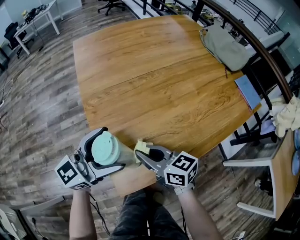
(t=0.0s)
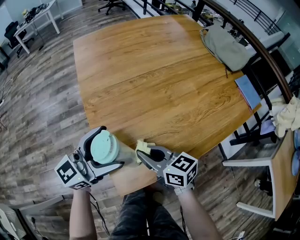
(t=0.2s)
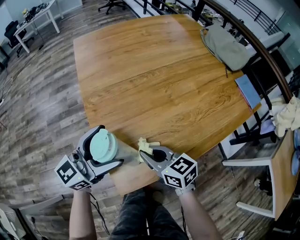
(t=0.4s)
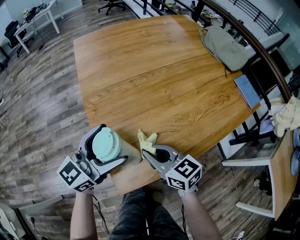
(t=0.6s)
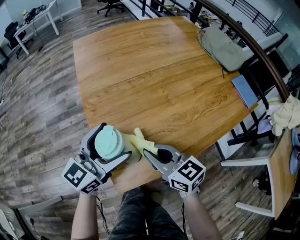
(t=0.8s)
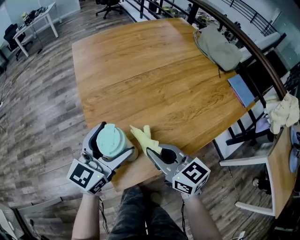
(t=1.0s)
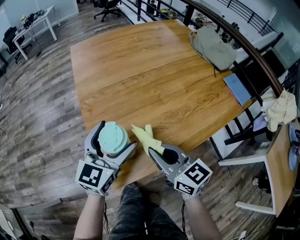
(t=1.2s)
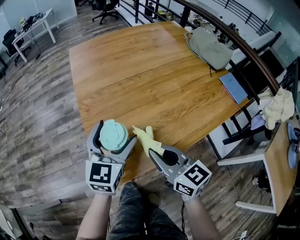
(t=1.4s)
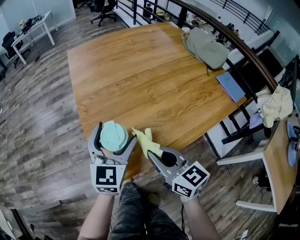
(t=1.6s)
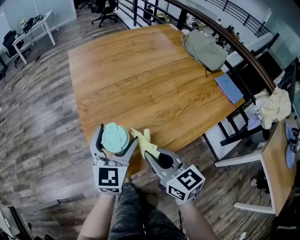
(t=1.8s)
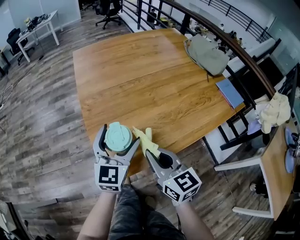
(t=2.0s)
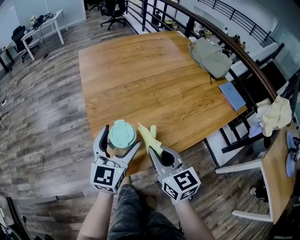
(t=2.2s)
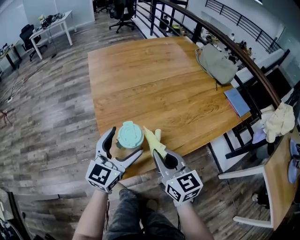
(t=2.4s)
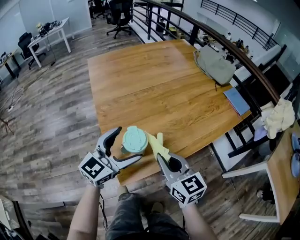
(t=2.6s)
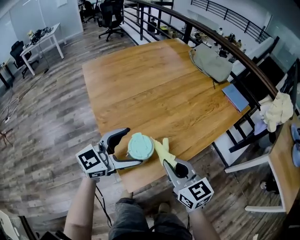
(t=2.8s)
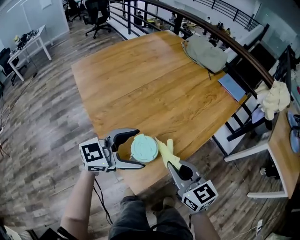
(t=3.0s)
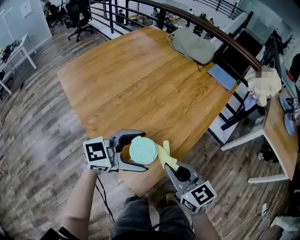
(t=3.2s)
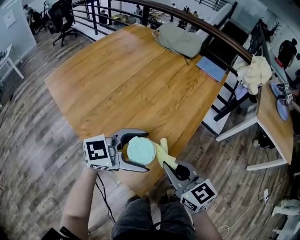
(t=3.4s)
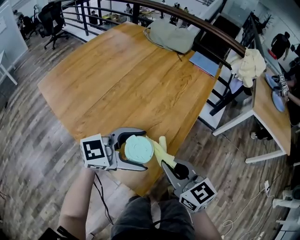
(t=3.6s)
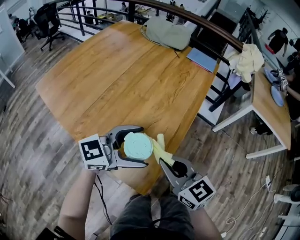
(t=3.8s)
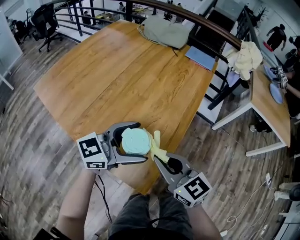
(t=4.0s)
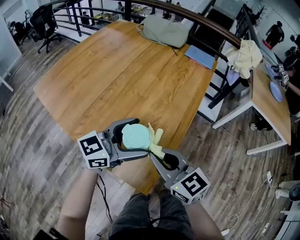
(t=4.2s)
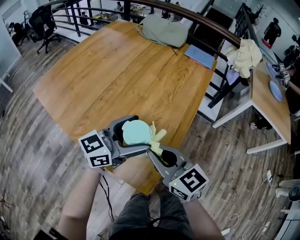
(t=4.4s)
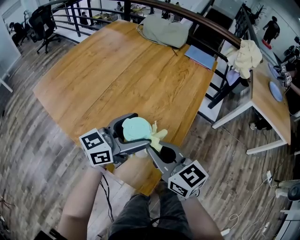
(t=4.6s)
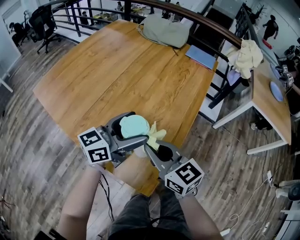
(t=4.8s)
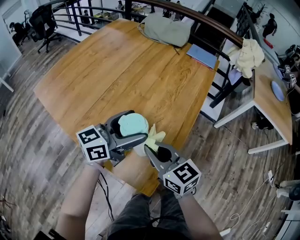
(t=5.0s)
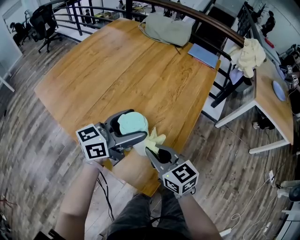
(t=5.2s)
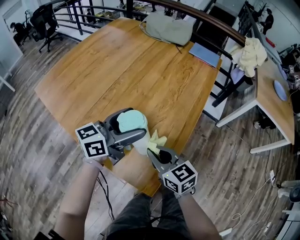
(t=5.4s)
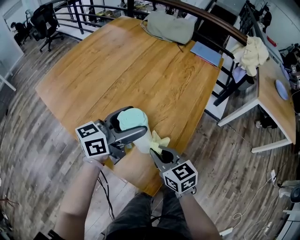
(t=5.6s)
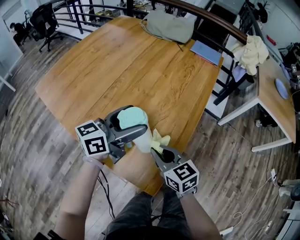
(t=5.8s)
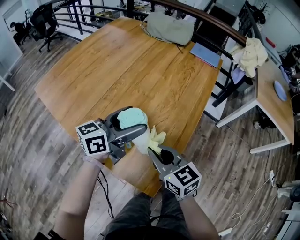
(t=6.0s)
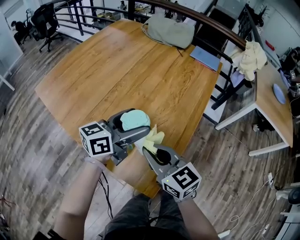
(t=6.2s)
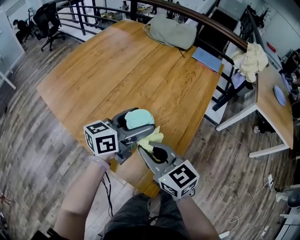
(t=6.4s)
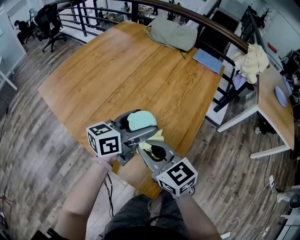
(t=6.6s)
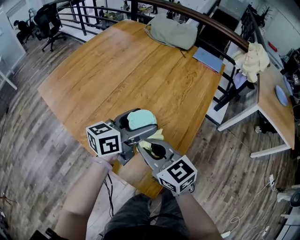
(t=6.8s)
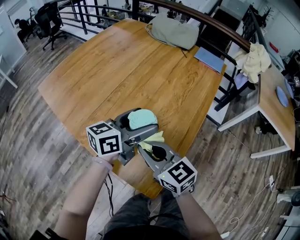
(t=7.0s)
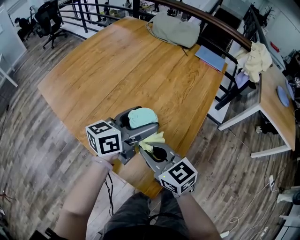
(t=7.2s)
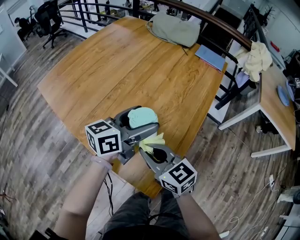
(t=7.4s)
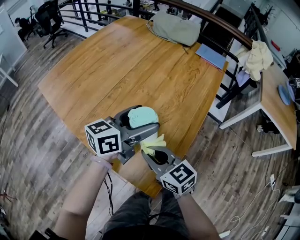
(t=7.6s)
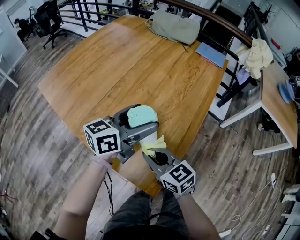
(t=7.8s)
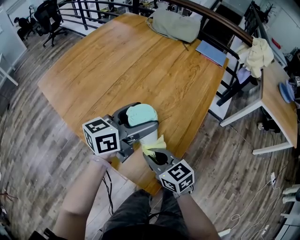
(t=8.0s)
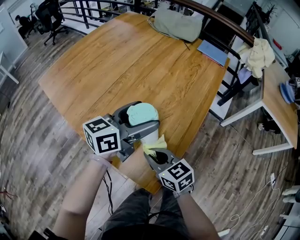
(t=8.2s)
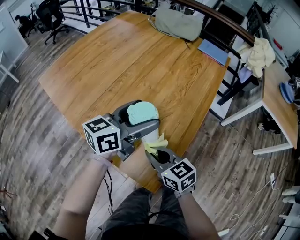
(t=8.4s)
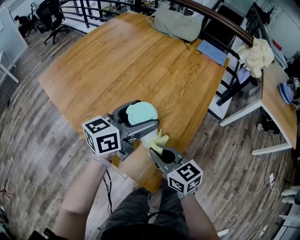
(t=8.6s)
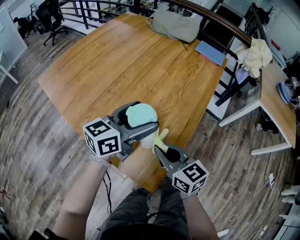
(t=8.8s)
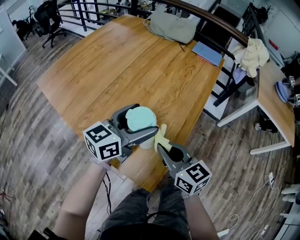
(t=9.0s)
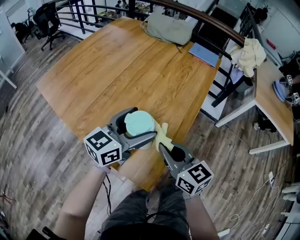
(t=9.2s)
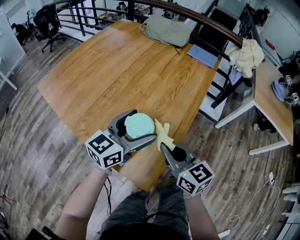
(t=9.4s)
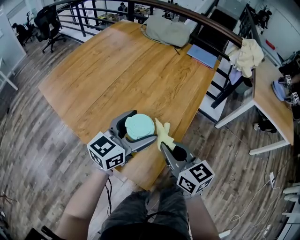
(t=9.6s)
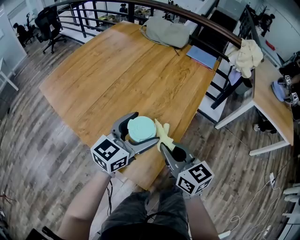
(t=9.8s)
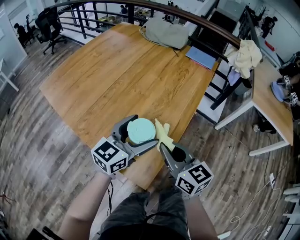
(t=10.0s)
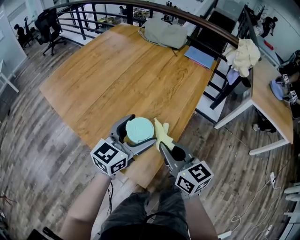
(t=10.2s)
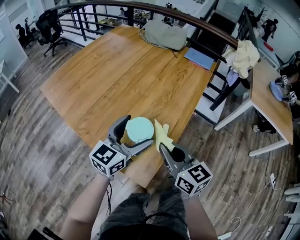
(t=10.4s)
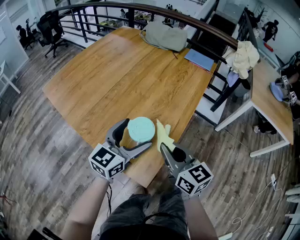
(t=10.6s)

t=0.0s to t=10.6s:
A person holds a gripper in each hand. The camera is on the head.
t=0.0s to t=1.6s: The right gripper shifts some 15 cm to the right, upward and backward, and swivels about 20 degrees. The left gripper shifts some 5 cm to the right, and turns by some 50 degrees.
t=1.6s to t=3.0s: The left gripper turns by approximately 70 degrees.
t=3.0s to t=4.6s: The left gripper moves forward, roughly 10 cm, and turns by roughly 20 degrees. Meanwhile the right gripper goes approximately 5 cm to the left.
t=4.6s to t=6.0s: The left gripper ends up approximately 5 cm from where it was; the right gripper goes approximately 5 cm downward.
t=7.6s to t=9.0s: The right gripper is displaced to the right by approximately 5 cm.
t=9.0s to t=10.6s: The left gripper is displaced backward by approximately 5 cm; the right gripper moves roughly 5 cm.

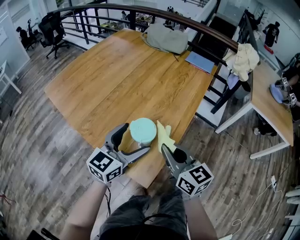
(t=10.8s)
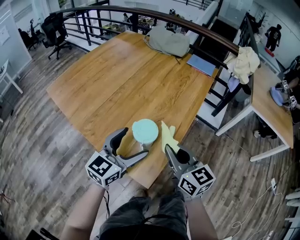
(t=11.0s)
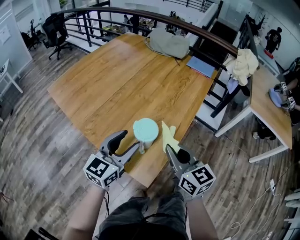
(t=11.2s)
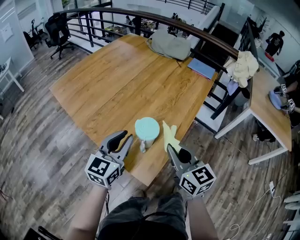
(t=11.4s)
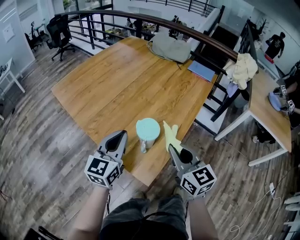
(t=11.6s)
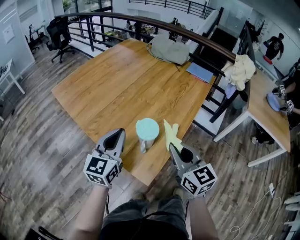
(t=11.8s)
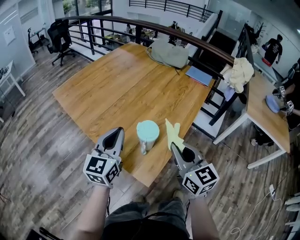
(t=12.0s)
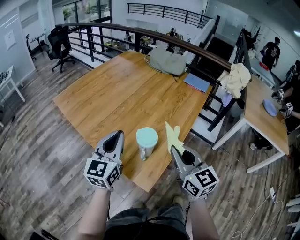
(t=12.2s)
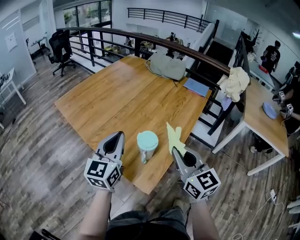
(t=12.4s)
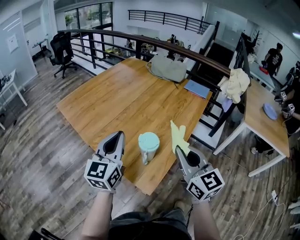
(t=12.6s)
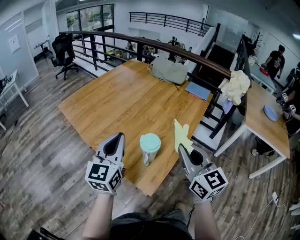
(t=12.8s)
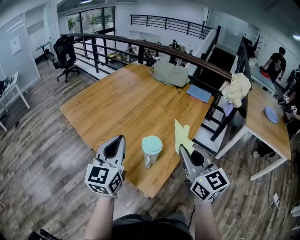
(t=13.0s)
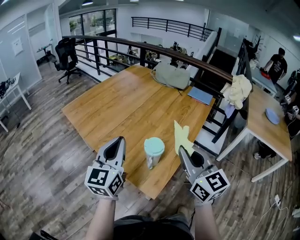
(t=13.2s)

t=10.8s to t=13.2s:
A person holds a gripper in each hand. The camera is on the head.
t=10.8s to t=12.0s: The left gripper goes roughly 10 cm to the left and upward, swivels roughly 30 degrees, and closes its fingers. The right gripper moves upward, some 5 cm.
t=12.0s to t=13.2s: The grippers both shift upward by roughly 10 cm.

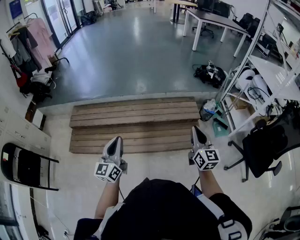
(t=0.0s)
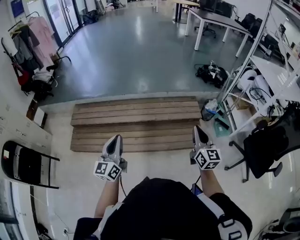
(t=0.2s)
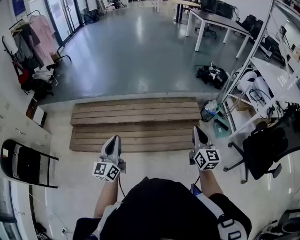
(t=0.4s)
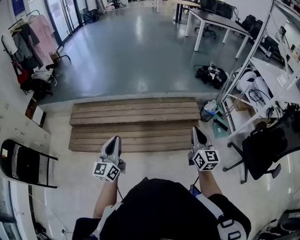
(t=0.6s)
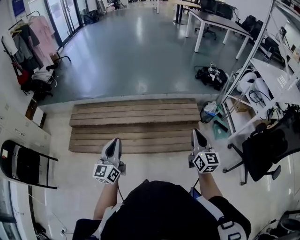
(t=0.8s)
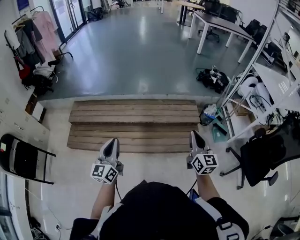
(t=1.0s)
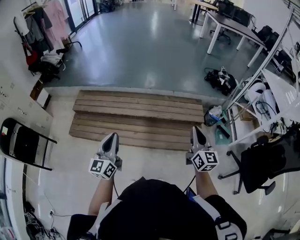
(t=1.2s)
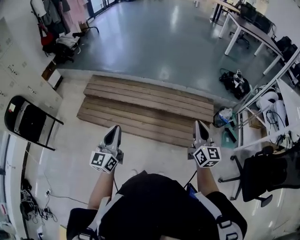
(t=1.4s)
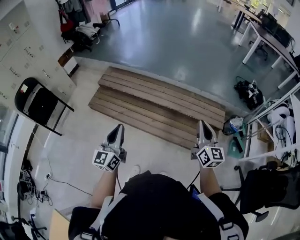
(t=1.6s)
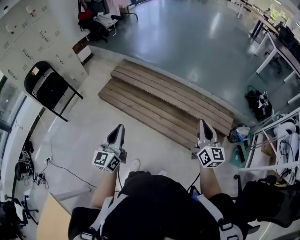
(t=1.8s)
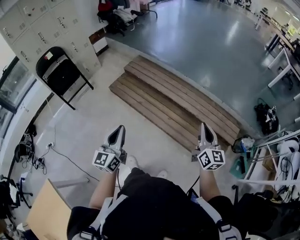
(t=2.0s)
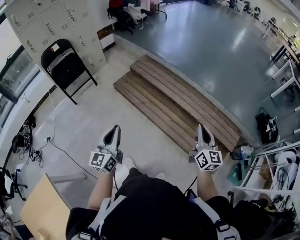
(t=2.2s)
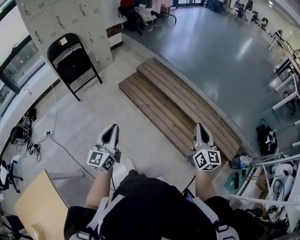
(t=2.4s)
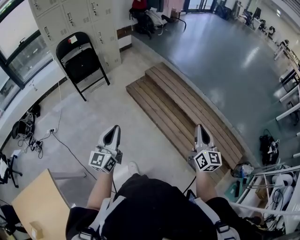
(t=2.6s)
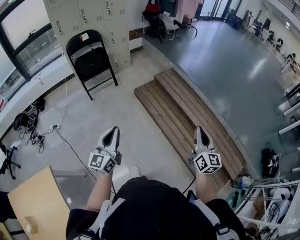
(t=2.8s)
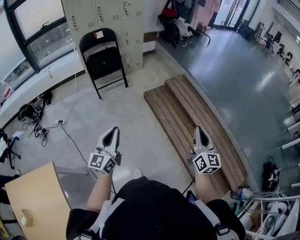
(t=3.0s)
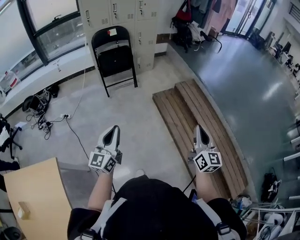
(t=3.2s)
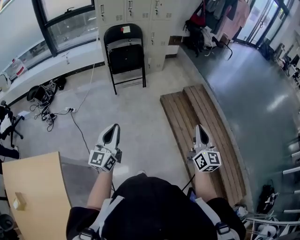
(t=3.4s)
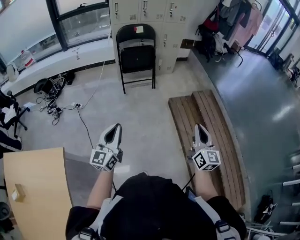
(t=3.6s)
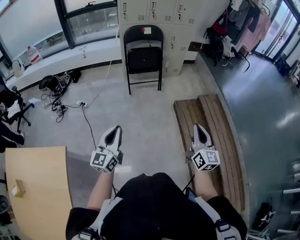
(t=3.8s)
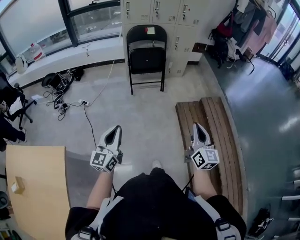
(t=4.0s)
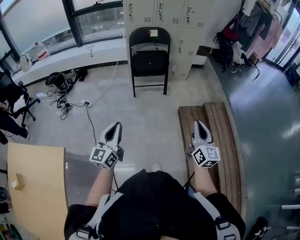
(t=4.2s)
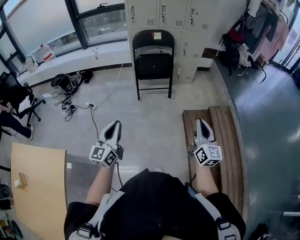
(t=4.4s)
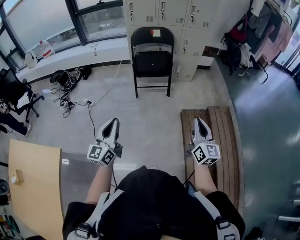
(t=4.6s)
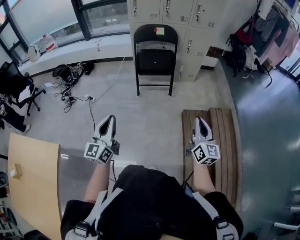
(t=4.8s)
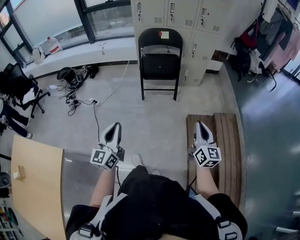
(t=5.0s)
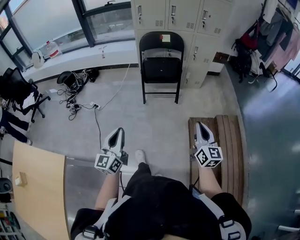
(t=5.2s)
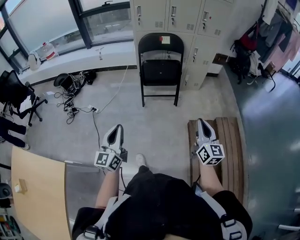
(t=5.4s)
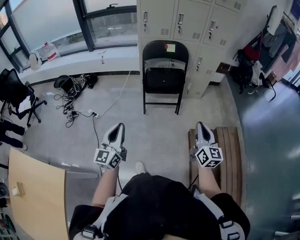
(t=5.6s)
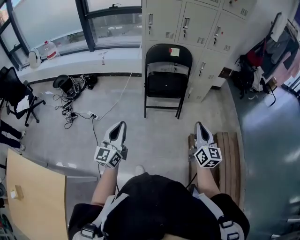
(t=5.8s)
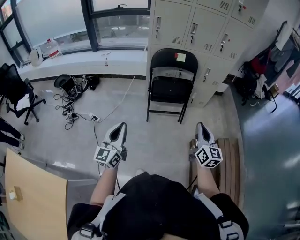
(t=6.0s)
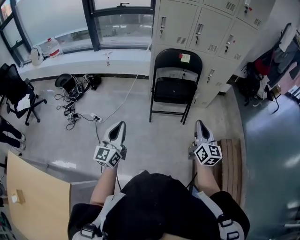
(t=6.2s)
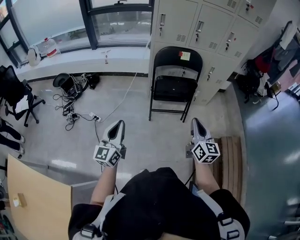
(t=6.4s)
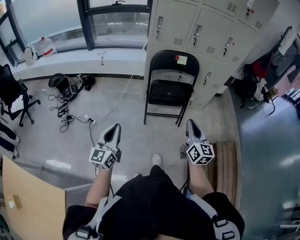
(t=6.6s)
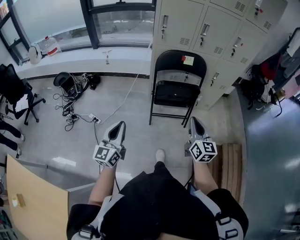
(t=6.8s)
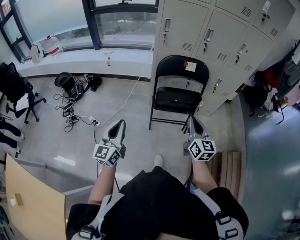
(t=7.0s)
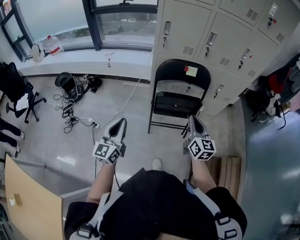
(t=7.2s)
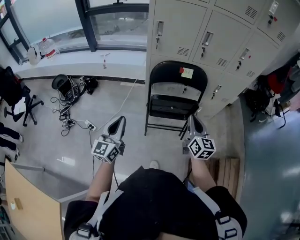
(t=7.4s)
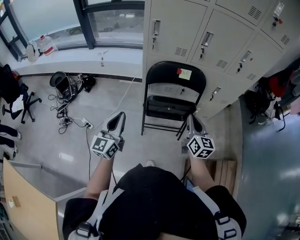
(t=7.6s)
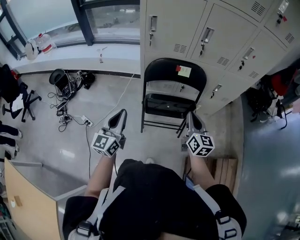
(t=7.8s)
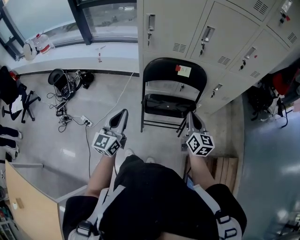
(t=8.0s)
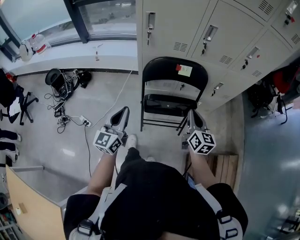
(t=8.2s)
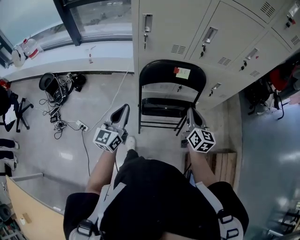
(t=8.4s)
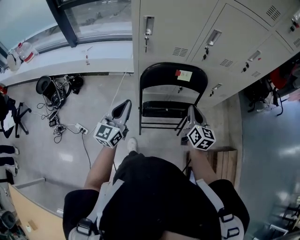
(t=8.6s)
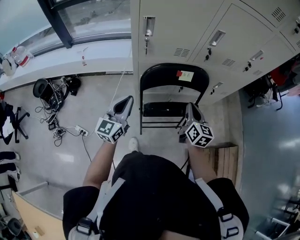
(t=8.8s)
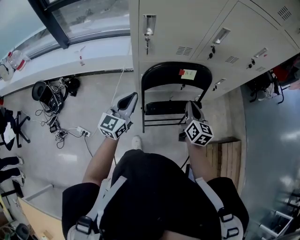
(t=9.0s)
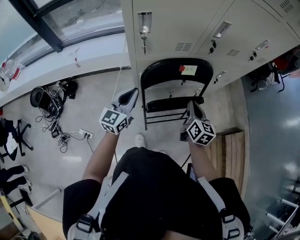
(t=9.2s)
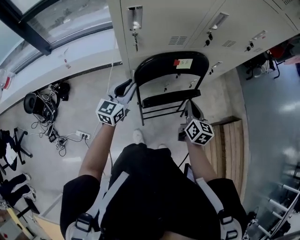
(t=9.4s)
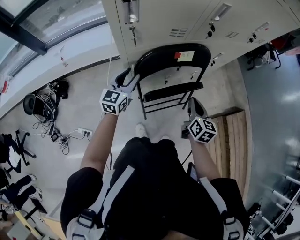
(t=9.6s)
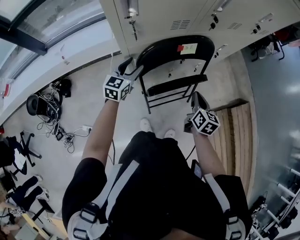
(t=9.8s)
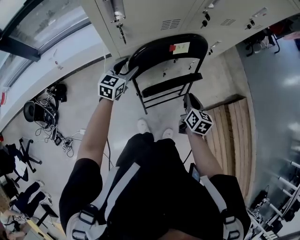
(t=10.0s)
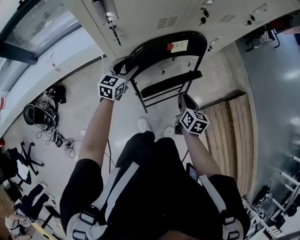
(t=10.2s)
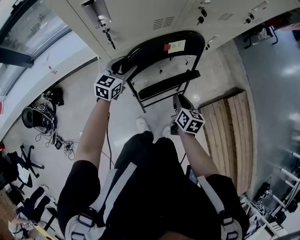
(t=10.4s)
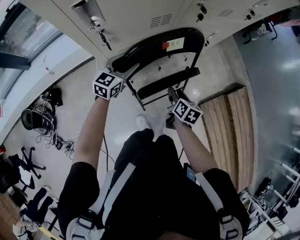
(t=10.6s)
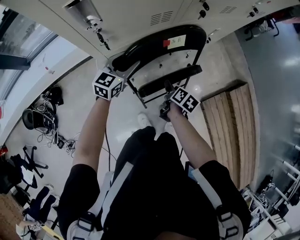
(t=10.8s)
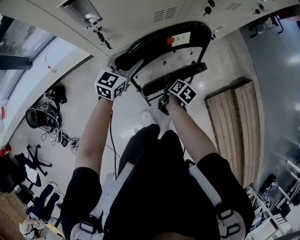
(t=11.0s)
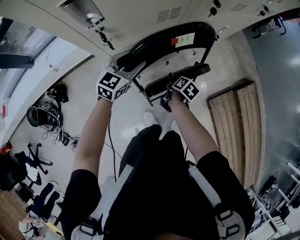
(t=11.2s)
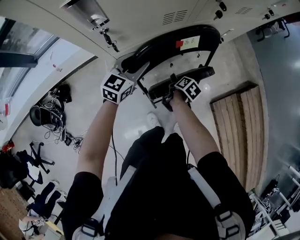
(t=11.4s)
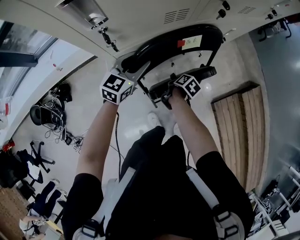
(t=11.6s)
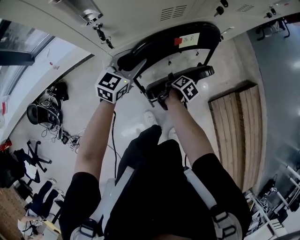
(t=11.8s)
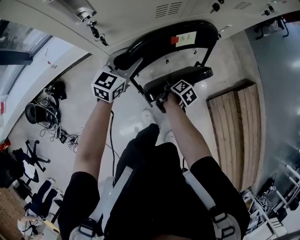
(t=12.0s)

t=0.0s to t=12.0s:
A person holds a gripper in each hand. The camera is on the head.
t=0.0s to t=1.6s: The right gripper heads to the left, covering about 5 cm, and changes its angle by approximately 20 degrees. The left gripper shifts some 10 cm backward, and changes its angle by about 20 degrees.
t=1.6s to t=3.0s: The right gripper shifts by roughly 40 cm, and changes its angle by approximately 40 degrees, while the left gripper shifts by some 35 cm, and turns by roughly 40 degrees.
t=3.0s to t=4.4s: The left gripper shifts by about 20 cm, and swivels about 20 degrees; the right gripper moves about 35 cm, and changes its angle by roughly 30 degrees.
t=4.4s to t=6.0s: Both grippers move forward and to the left, roughly 30 cm.
t=6.0s to t=7.6s: Both grippers move forward, roughly 35 cm.
t=7.6s to t=9.0s: The left gripper goes about 25 cm forward, and turns by about 20 degrees. Meanwhile the right gripper is displaced forward by approximately 15 cm.
t=9.0s to t=10.4s: The left gripper is displaced forward and downward by approximately 25 cm, rotates approximately 30 degrees, and opens, while the right gripper heads downward, covering about 15 cm, and rotates approximately 30 degrees.
t=10.4s to t=12.0s: The right gripper moves downward, some 15 cm, twists about 40 degrees clockwise, seen from behind, and opens.
